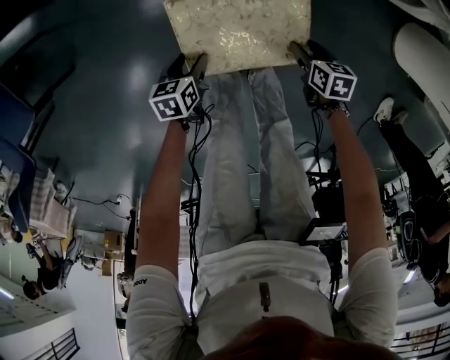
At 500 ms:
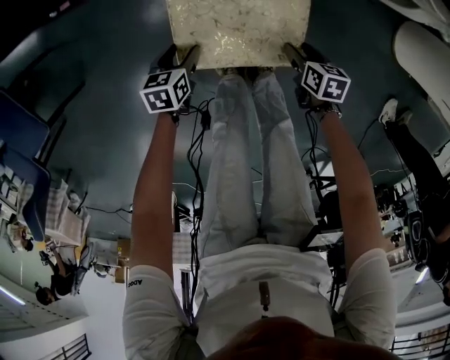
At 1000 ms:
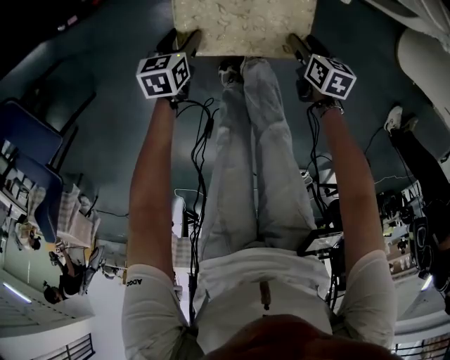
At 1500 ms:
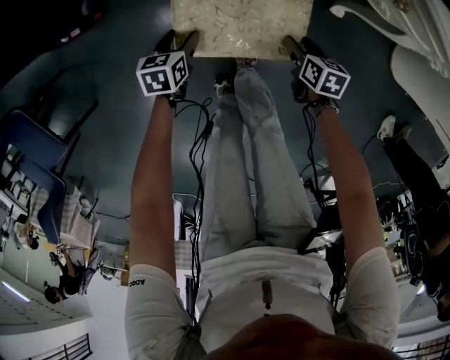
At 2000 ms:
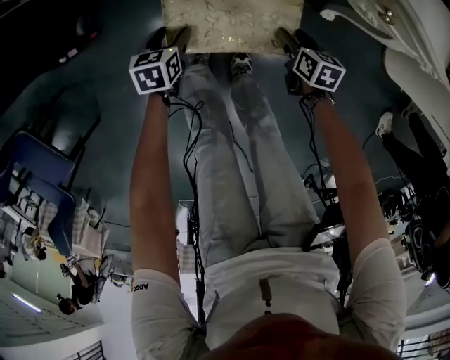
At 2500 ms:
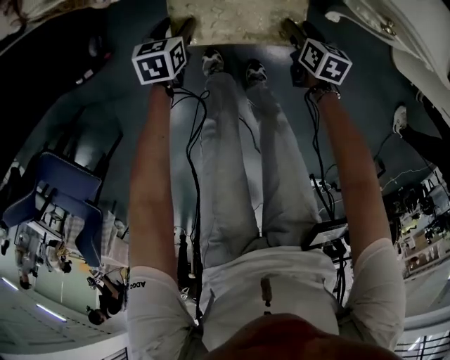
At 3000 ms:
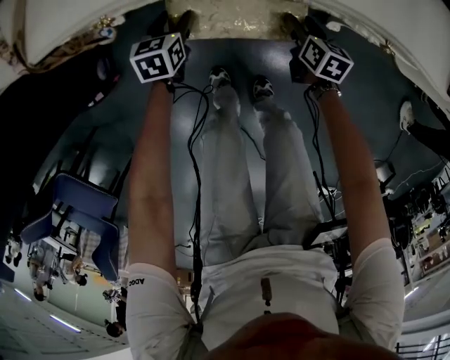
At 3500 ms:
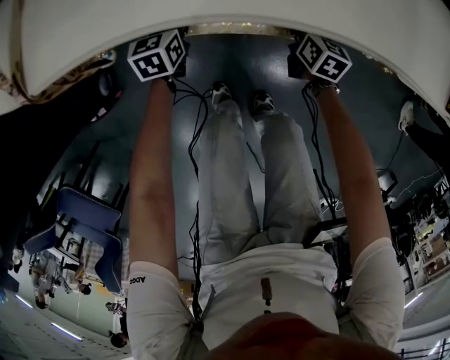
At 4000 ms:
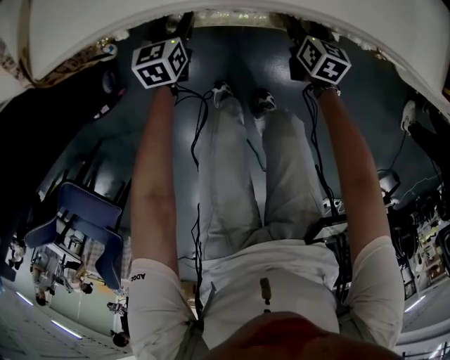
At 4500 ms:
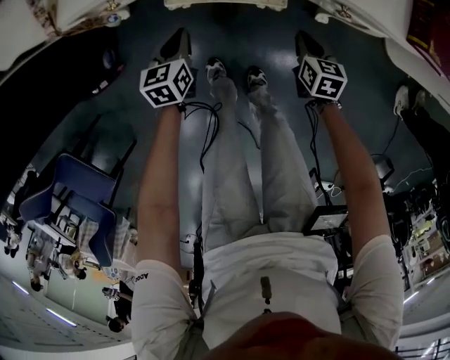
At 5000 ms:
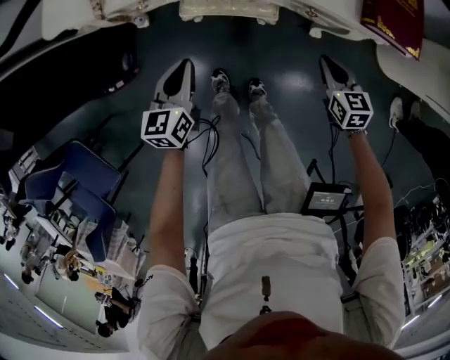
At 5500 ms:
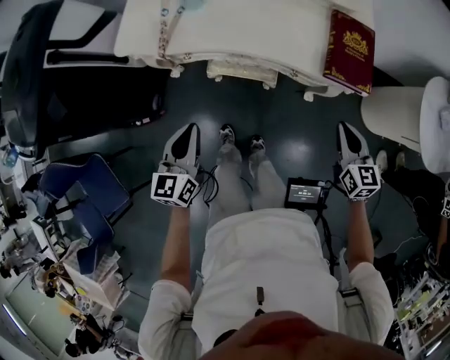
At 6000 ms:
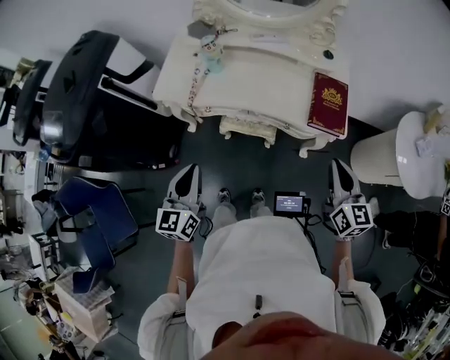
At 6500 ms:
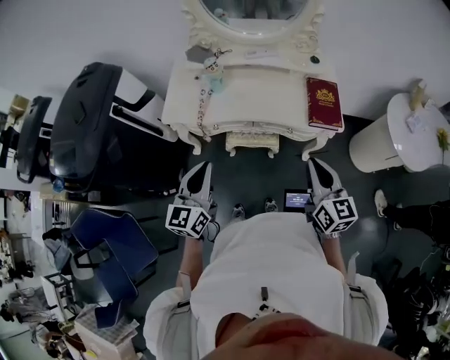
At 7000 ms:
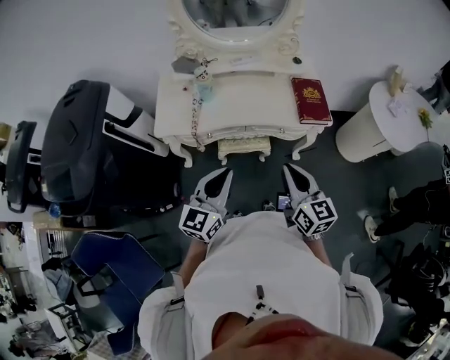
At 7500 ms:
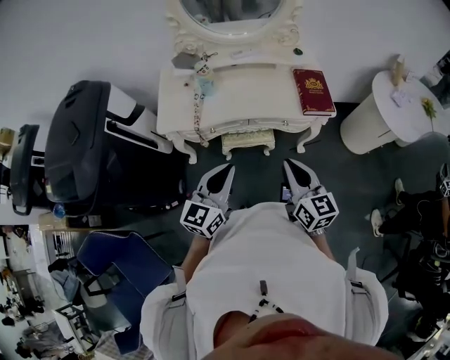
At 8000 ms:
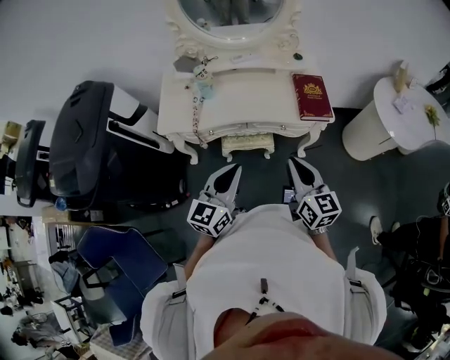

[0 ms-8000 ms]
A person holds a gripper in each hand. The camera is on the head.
0 ms to 2000 ms: Both grippers move forward, some 30 cm. The left gripper changes its angle by approximately 20 degrees. Meanwhile the right gripper changes its angle by about 20 degrees.
2000 ms to 4000 ms: The grippers both shift forward by about 20 cm. The left gripper rotates some 20 degrees; the right gripper turns by some 20 degrees.
4000 ms to 6000 ms: The right gripper shifts approximately 70 cm upward, turns by roughly 30 degrees, and closes its fingers, while the left gripper heads upward and backward, covering approximately 80 cm, swivels approximately 30 degrees, and closes.
6000 ms to 8000 ms: The right gripper moves to the left and backward, some 20 cm. Meanwhile the left gripper shifts about 5 cm upward, and swivels roughly 30 degrees.

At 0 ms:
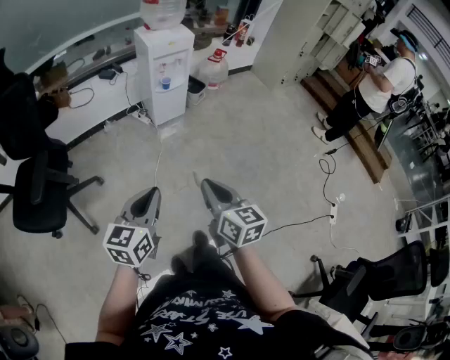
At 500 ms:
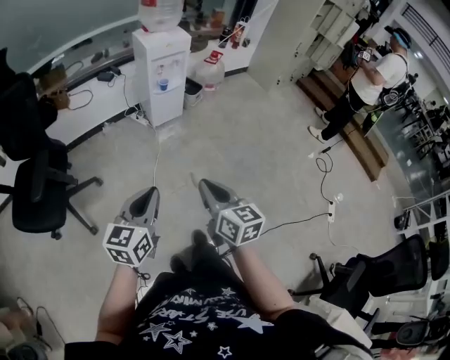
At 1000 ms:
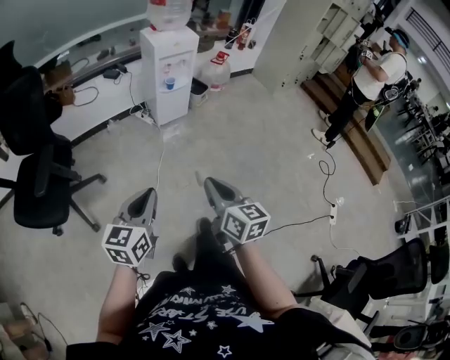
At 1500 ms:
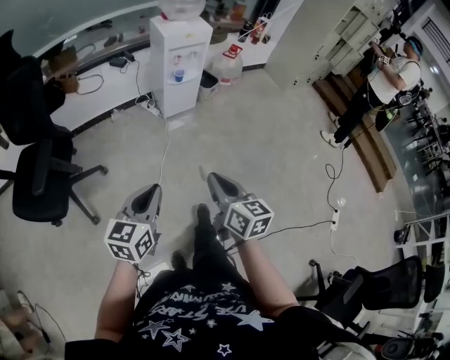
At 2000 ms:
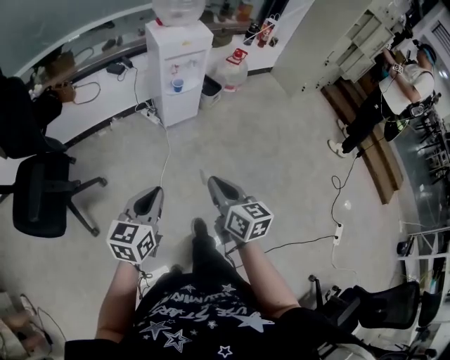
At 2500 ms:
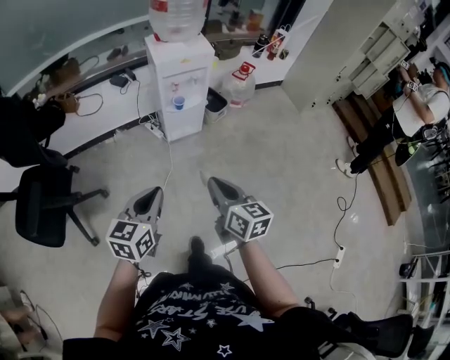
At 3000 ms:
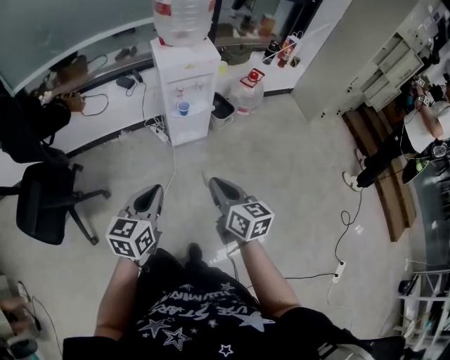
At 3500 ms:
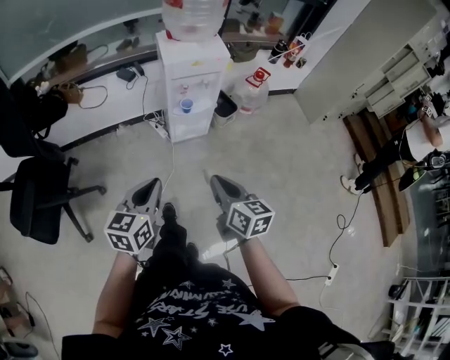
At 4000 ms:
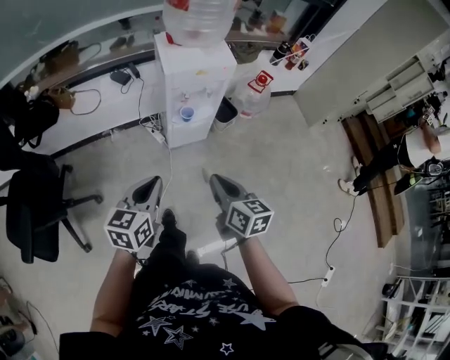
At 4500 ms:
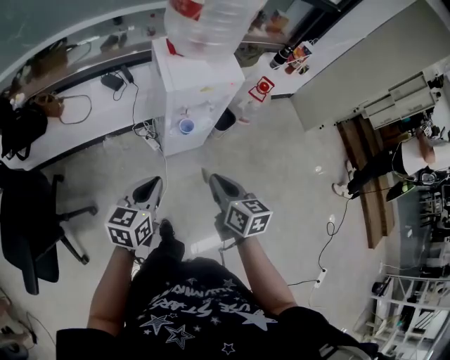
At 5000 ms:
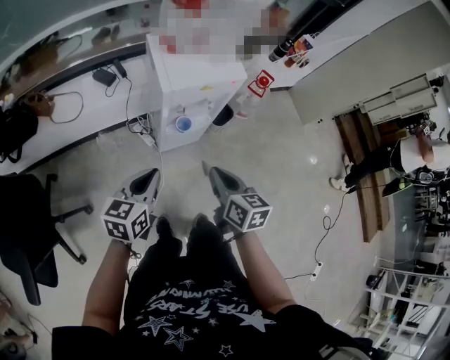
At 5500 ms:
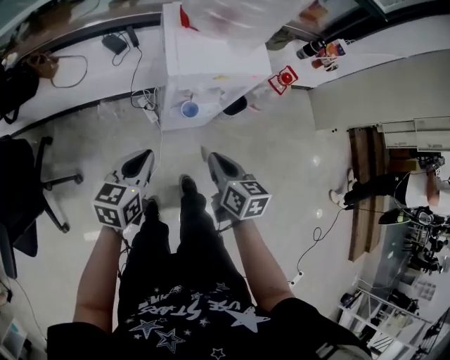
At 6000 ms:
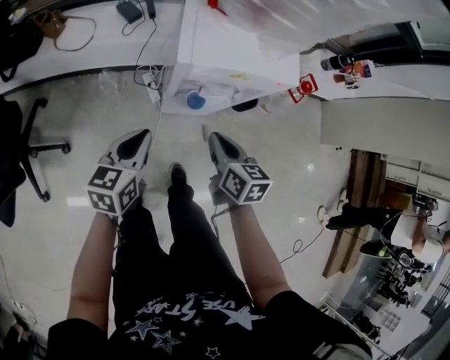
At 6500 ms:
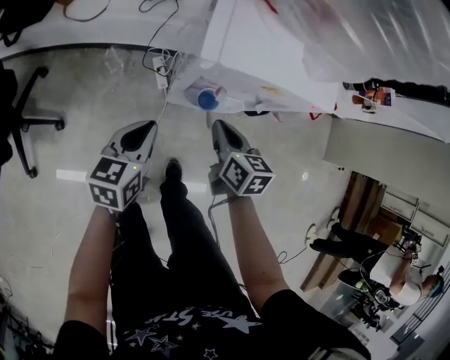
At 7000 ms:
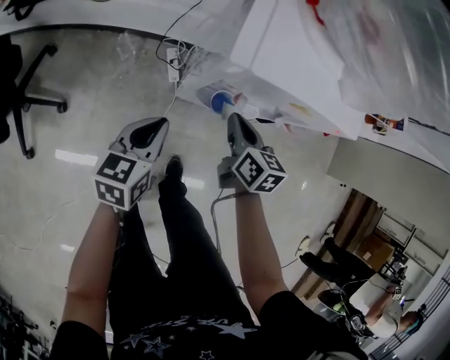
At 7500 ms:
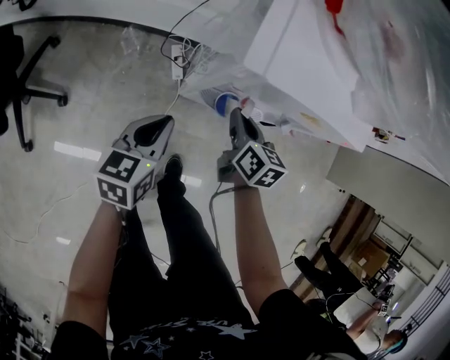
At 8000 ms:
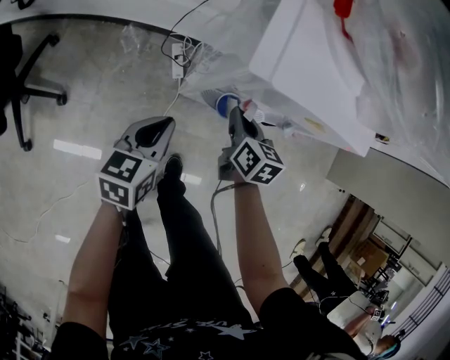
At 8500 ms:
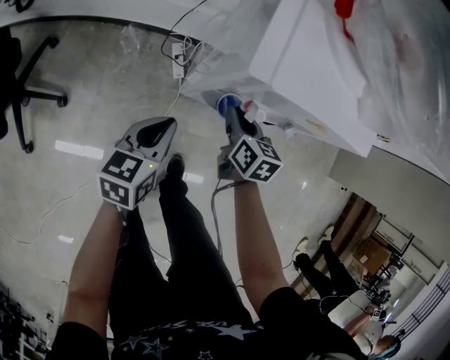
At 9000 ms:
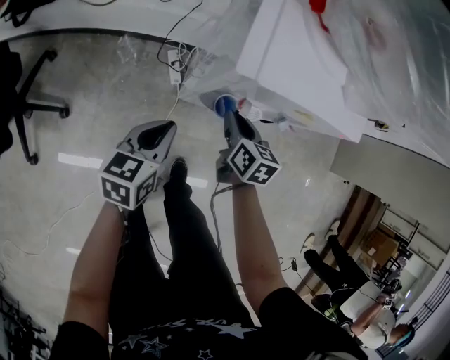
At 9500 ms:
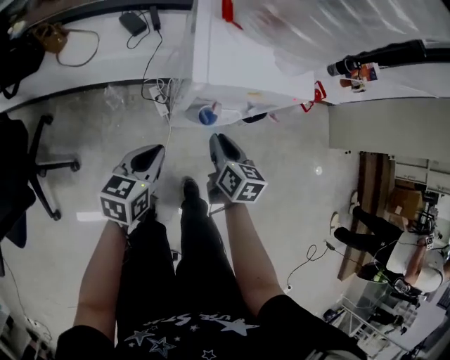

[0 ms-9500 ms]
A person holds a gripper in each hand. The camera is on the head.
0 ms to 2000 ms: The two grippers go some 15 cm forward.
2000 ms to 4000 ms: Both grippers move forward, about 30 cm.
4000 ms to 5500 ms: The grippers both shift forward and downward by approximately 25 cm.
5500 ms to 7500 ms: The left gripper moves downward and forward, roughly 20 cm. The right gripper goes roughly 30 cm forward and downward.
7500 ms to 9500 ms: The left gripper heads upward, covering roughly 10 cm, while the right gripper is displaced upward and backward by some 10 cm.

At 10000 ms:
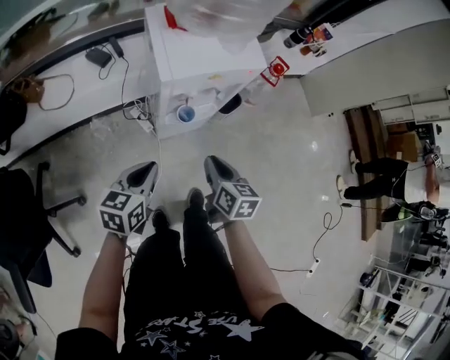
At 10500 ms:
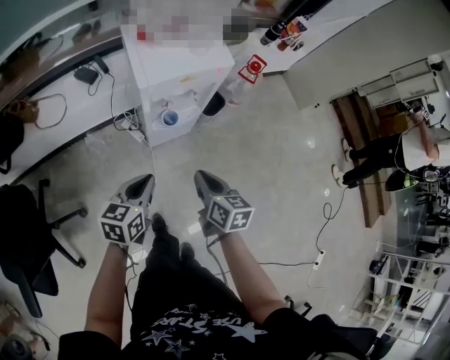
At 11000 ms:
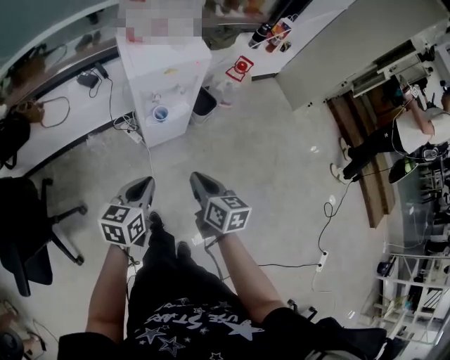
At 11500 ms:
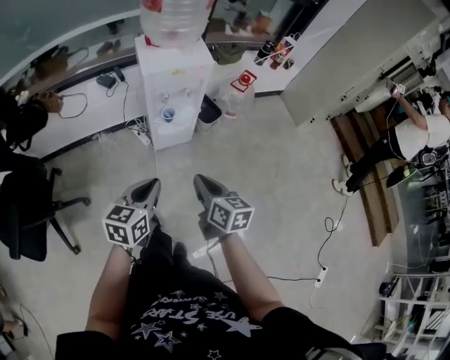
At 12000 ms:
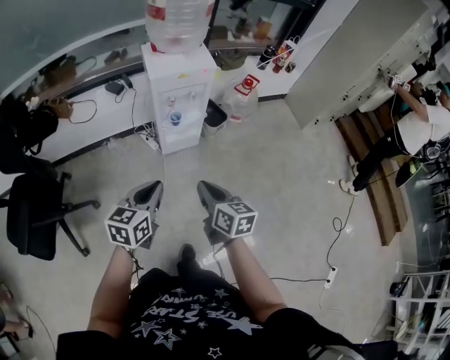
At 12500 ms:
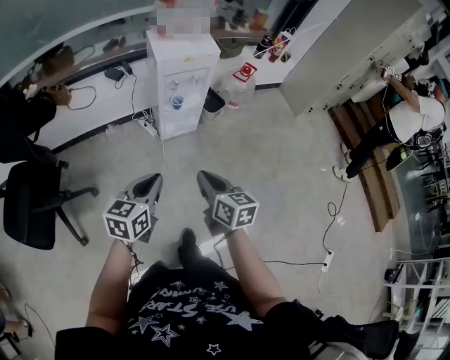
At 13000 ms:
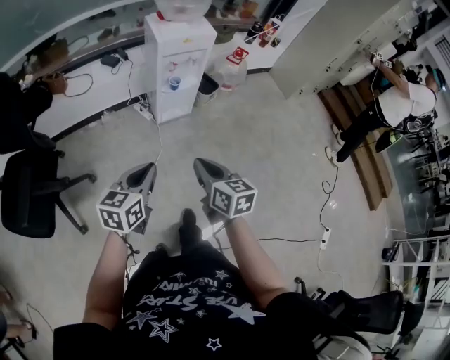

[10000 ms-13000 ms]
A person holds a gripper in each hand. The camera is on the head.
10000 ms to 11500 ms: The right gripper is displaced backward and upward by roughly 25 cm. Meanwhile the left gripper shifts approximately 30 cm backward, upward and to the right.
11500 ms to 13000 ms: Both grippers travel together backward and to the left, about 20 cm.

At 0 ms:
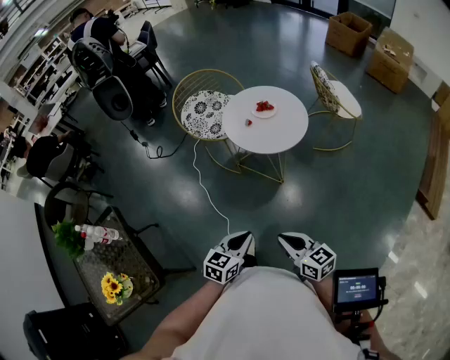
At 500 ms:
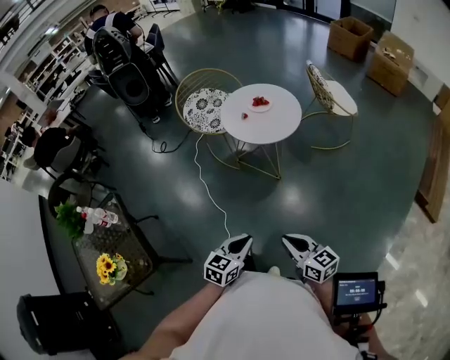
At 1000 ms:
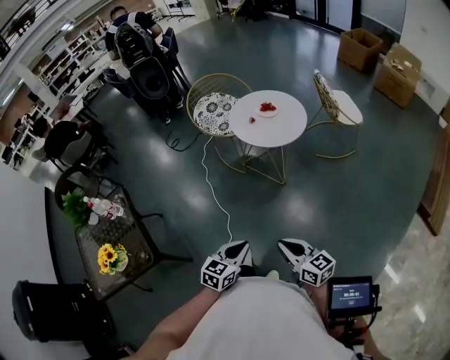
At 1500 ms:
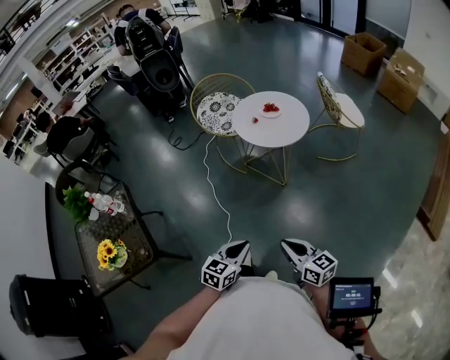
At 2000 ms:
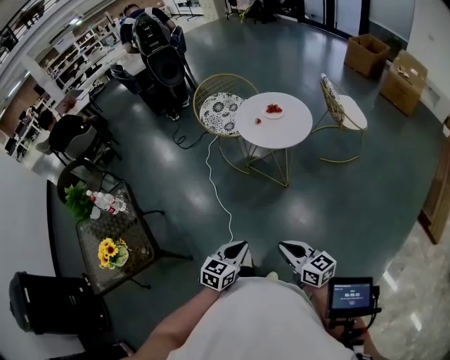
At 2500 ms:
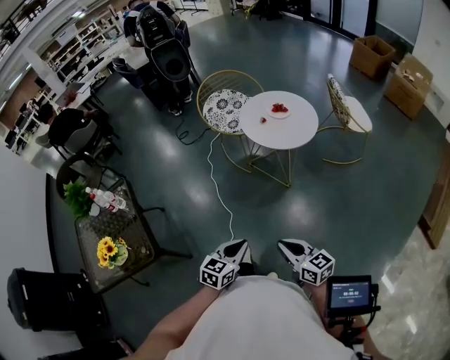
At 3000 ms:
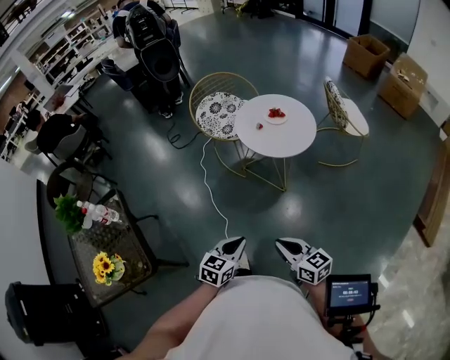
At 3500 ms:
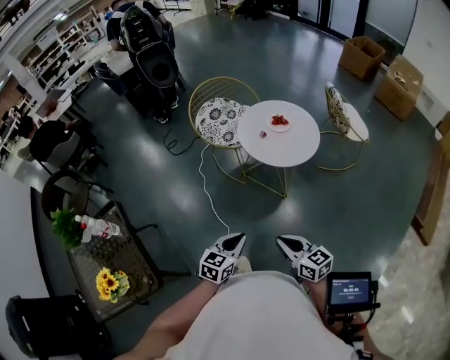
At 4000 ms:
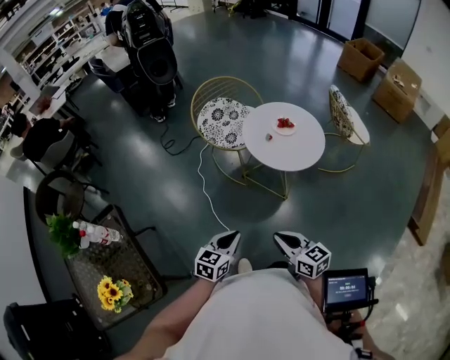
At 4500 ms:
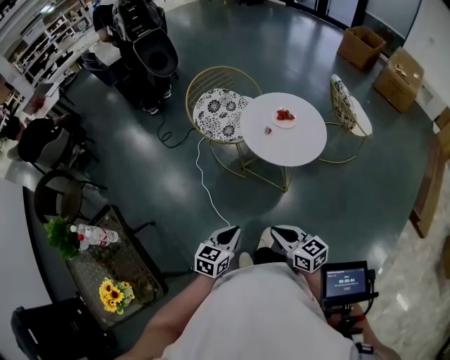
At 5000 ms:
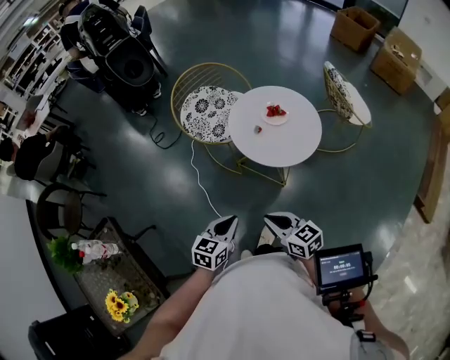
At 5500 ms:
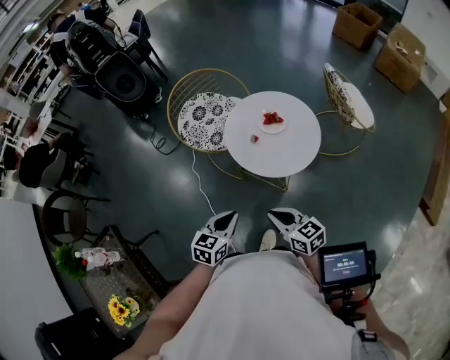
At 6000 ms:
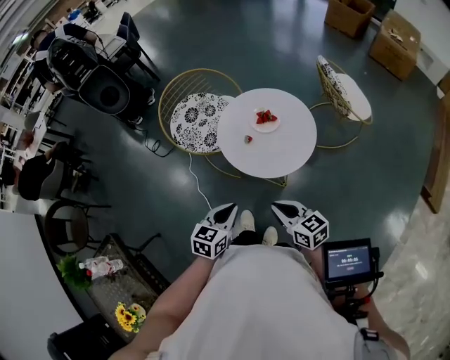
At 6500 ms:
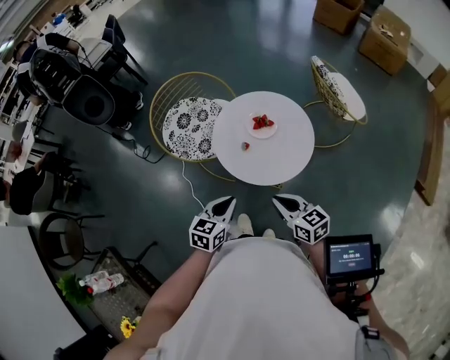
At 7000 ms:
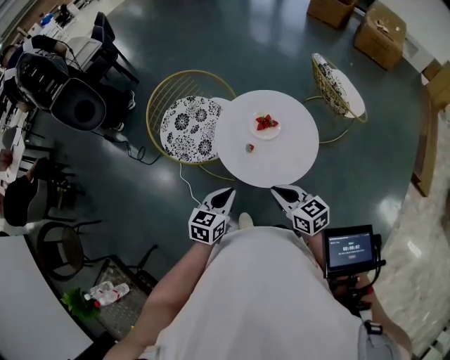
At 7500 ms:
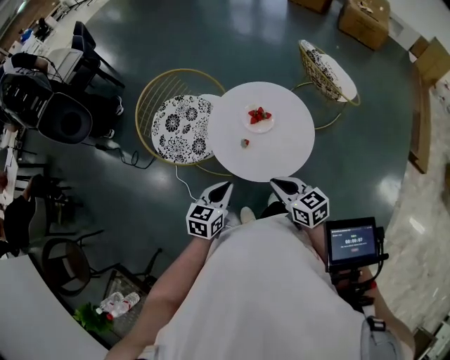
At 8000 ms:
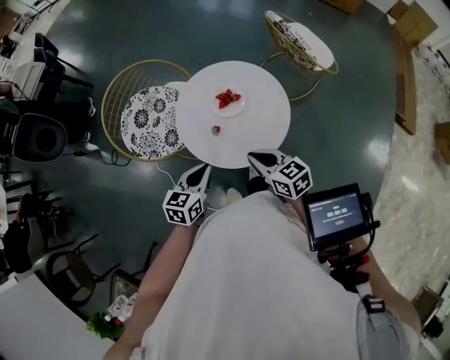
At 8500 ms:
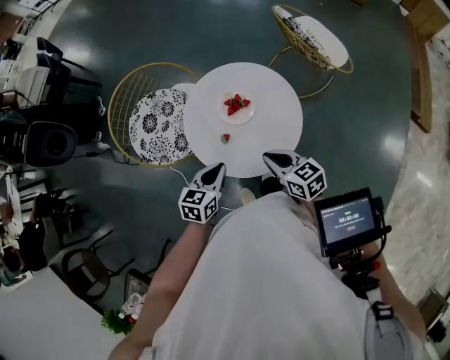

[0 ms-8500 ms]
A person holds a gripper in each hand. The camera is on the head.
0 ms to 2000 ms: The grippers both shift backward by approximately 15 cm.
2000 ms to 4000 ms: Both grippers move forward and to the left, approximately 25 cm.
4000 ms to 6500 ms: The left gripper moves forward, some 30 cm. The right gripper heads forward and to the right, covering roughly 30 cm.
6500 ms to 8500 ms: Both grippers travel together forward, about 15 cm.
